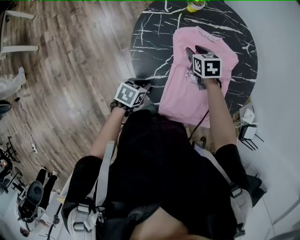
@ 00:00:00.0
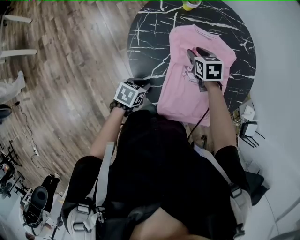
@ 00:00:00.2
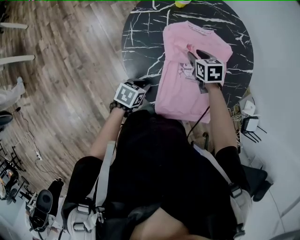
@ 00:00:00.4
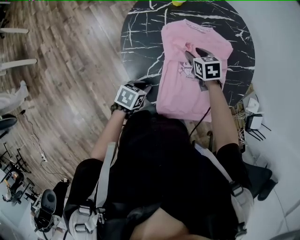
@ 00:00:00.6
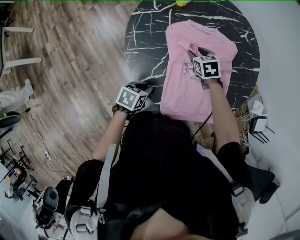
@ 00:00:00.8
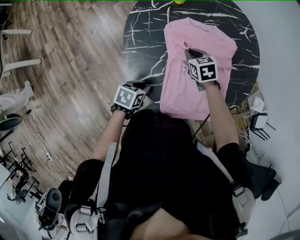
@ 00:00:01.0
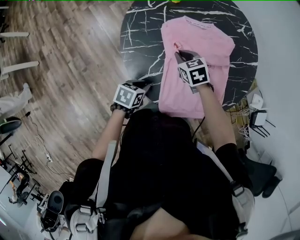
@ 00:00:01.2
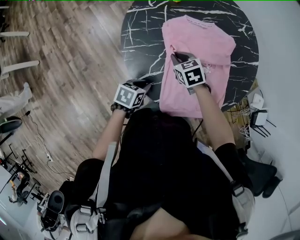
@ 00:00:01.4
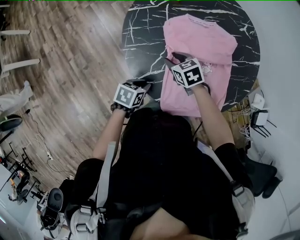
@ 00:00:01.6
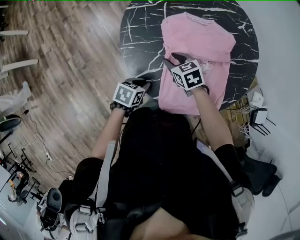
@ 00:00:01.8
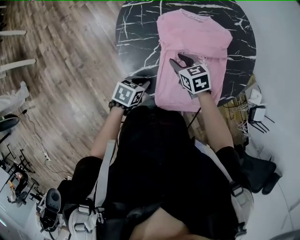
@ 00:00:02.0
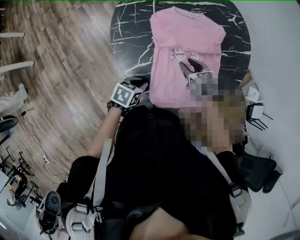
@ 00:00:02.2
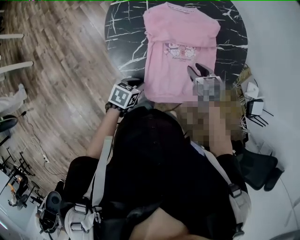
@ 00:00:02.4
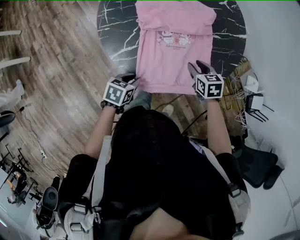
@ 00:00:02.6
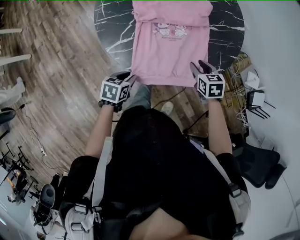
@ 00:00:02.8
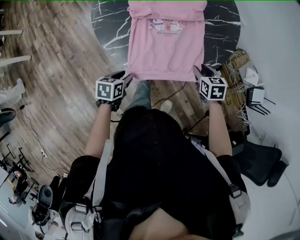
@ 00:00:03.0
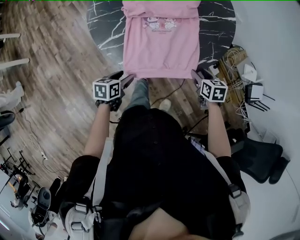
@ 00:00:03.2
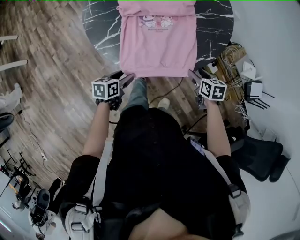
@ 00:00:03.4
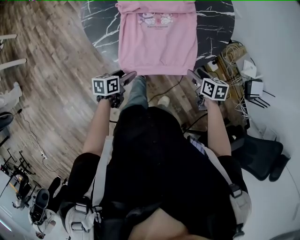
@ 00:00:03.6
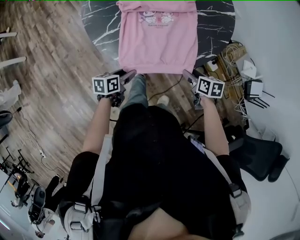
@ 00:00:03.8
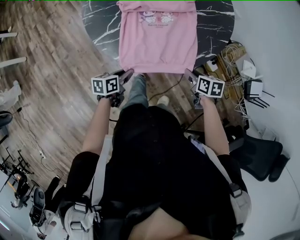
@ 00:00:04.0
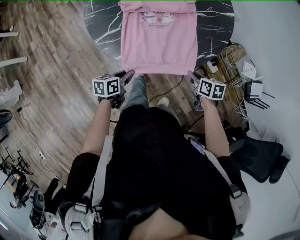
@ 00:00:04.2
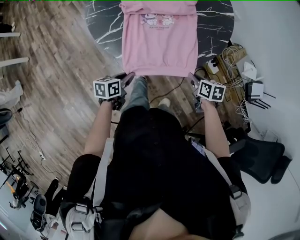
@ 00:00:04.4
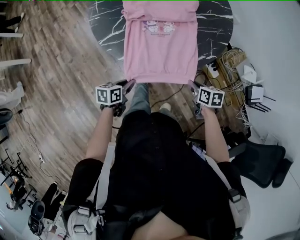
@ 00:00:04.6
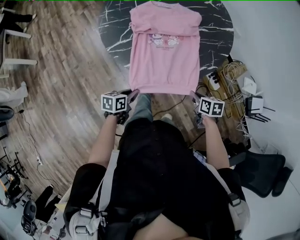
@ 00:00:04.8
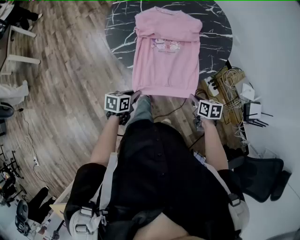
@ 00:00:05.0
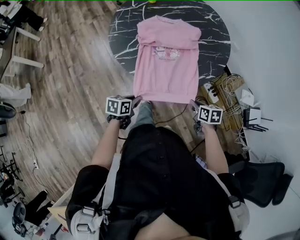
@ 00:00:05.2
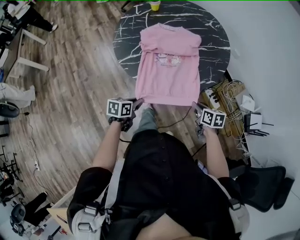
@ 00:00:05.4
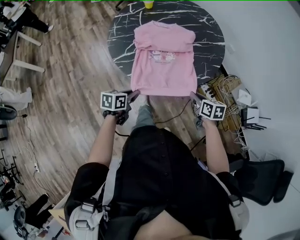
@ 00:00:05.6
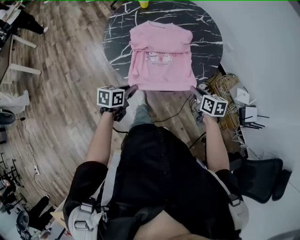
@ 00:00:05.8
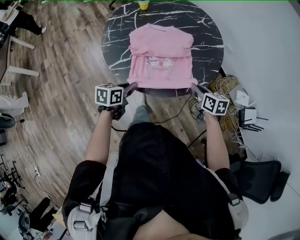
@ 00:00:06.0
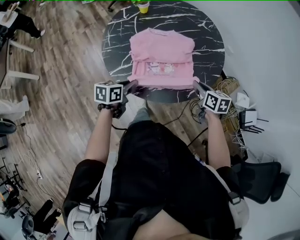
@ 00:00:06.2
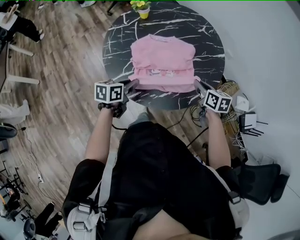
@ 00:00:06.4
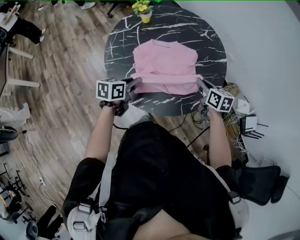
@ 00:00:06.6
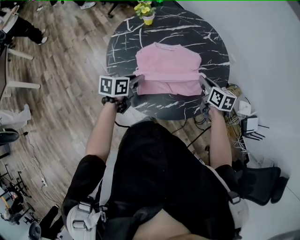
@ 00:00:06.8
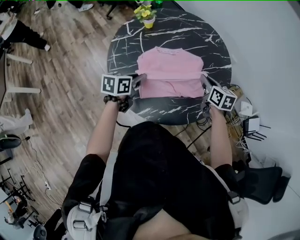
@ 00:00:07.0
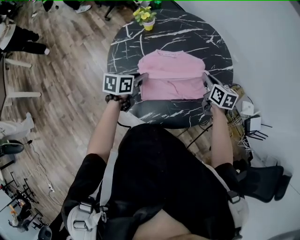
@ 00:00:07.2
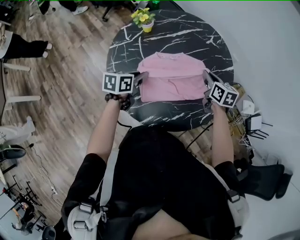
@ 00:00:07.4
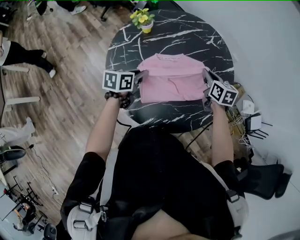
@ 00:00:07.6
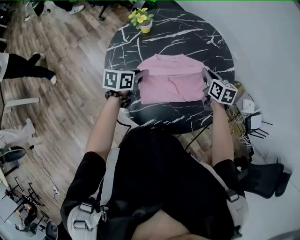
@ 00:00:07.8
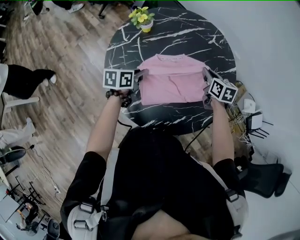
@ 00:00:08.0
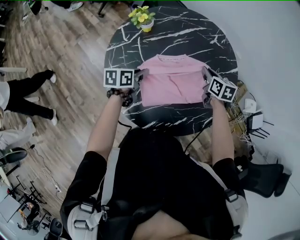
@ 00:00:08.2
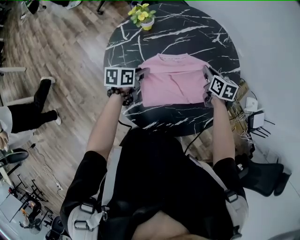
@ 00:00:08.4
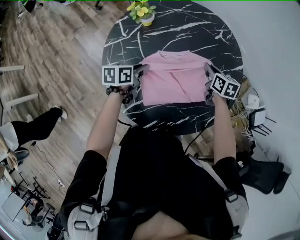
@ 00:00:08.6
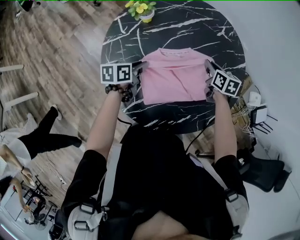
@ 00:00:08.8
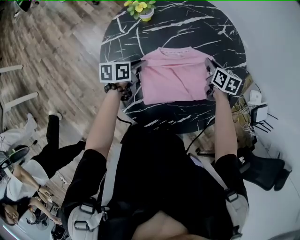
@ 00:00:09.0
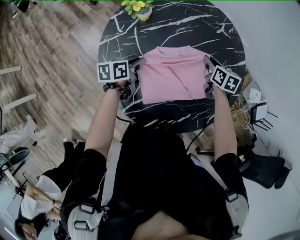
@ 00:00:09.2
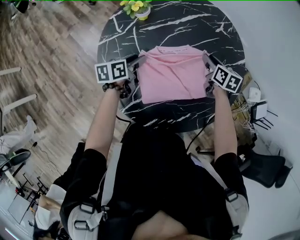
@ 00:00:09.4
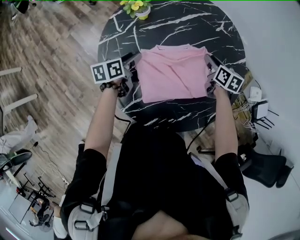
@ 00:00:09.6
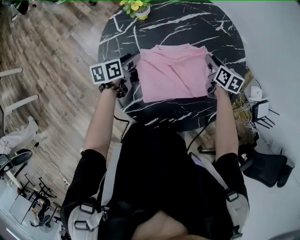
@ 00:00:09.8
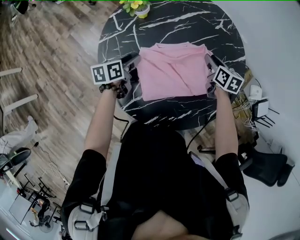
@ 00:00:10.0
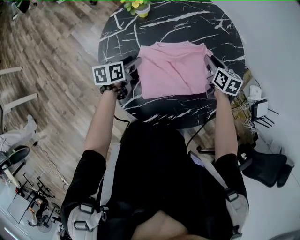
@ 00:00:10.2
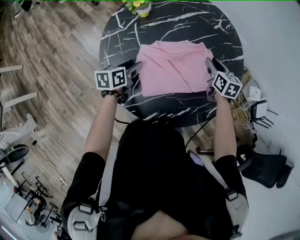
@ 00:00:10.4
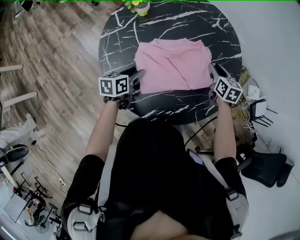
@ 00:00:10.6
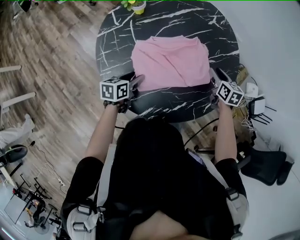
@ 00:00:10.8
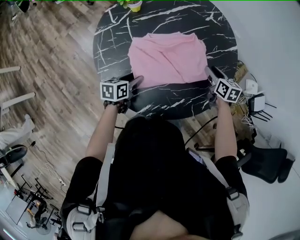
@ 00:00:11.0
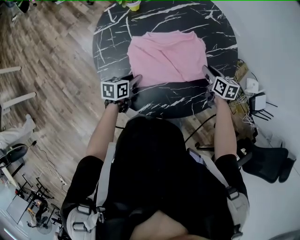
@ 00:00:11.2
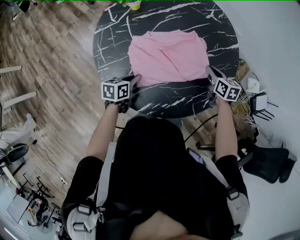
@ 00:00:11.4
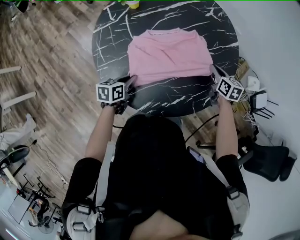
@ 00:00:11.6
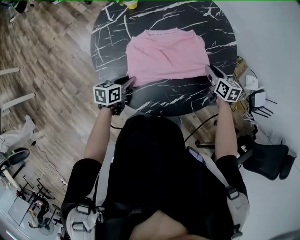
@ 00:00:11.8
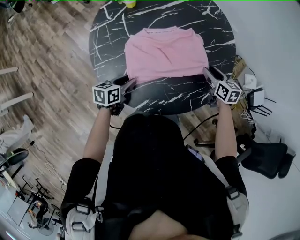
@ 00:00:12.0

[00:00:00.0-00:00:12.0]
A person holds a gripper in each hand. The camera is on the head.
00:00:00.0 to 00:00:01.6: The right gripper shifts approximately 10 cm backward.
00:00:01.6 to 00:00:03.0: The left gripper is displaced backward and to the right by about 15 cm. The right gripper goes roughly 35 cm to the right, and changes its angle by some 20 degrees.
00:00:03.0 to 00:00:04.4: The right gripper goes roughly 10 cm backward, and changes its angle by about 20 degrees. The left gripper is displaced to the right by roughly 5 cm.
00:00:04.4 to 00:00:06.0: Both grippers travel together upward and forward, some 15 cm.
00:00:06.0 to 00:00:07.6: The left gripper shifts some 25 cm forward. Meanwhile the right gripper shifts some 25 cm forward and to the left.
00:00:07.6 to 00:00:09.0: Both grippers move downward and forward, some 10 cm.
00:00:09.0 to 00:00:10.4: The left gripper opens. The right gripper moves roughly 5 cm.
00:00:10.4 to 00:00:12.0: The grippers both shift backward and to the right by about 15 cm.

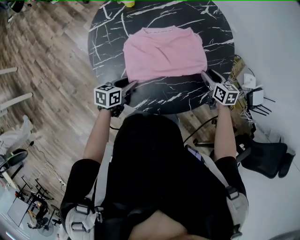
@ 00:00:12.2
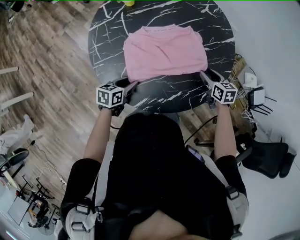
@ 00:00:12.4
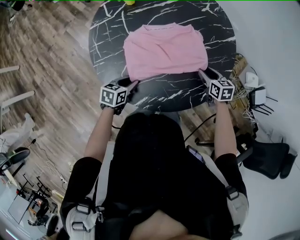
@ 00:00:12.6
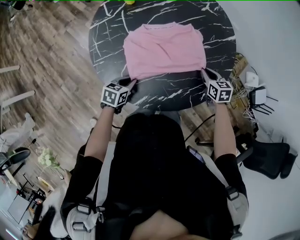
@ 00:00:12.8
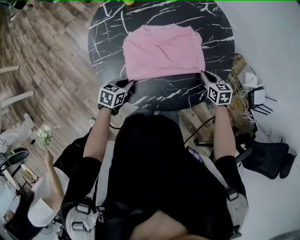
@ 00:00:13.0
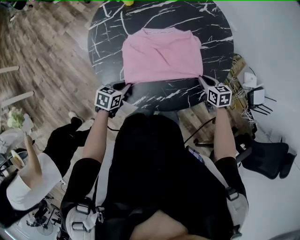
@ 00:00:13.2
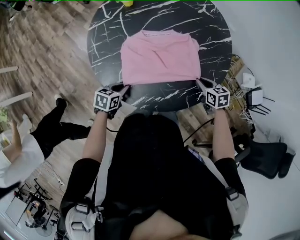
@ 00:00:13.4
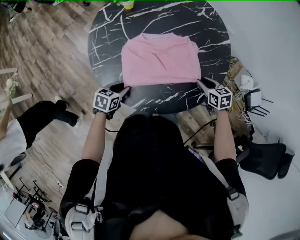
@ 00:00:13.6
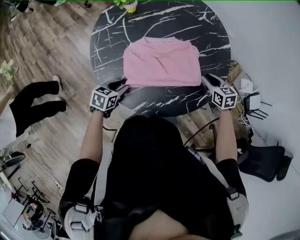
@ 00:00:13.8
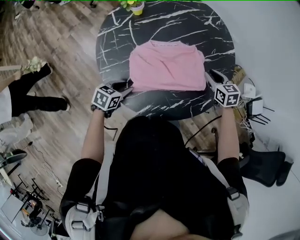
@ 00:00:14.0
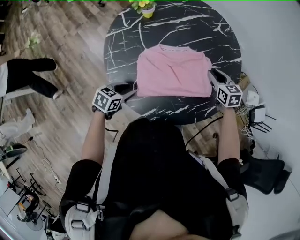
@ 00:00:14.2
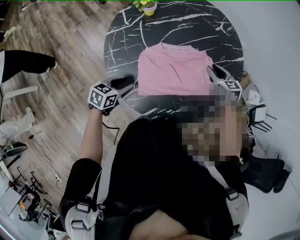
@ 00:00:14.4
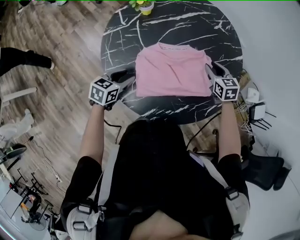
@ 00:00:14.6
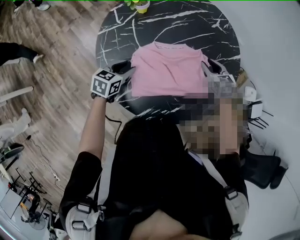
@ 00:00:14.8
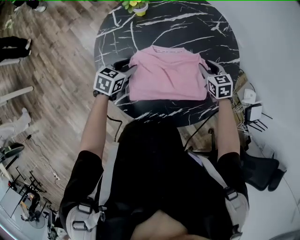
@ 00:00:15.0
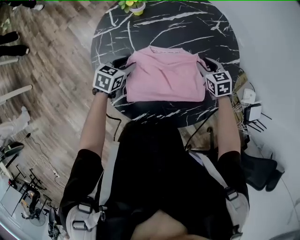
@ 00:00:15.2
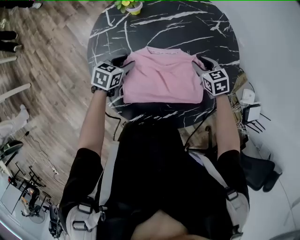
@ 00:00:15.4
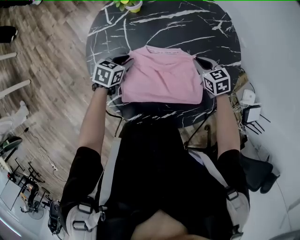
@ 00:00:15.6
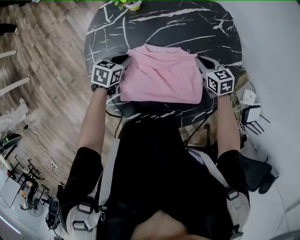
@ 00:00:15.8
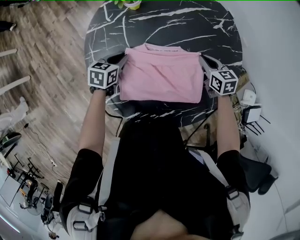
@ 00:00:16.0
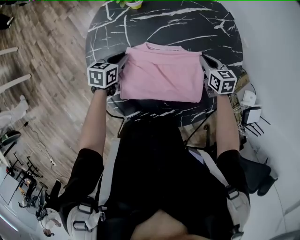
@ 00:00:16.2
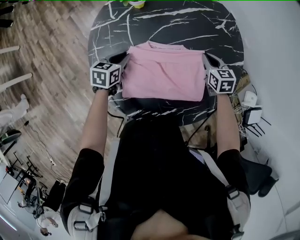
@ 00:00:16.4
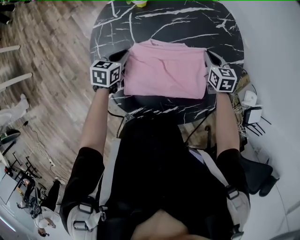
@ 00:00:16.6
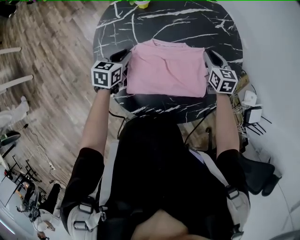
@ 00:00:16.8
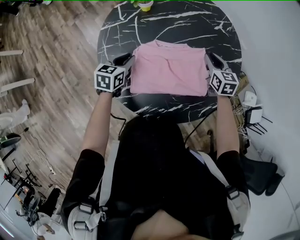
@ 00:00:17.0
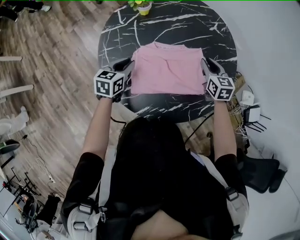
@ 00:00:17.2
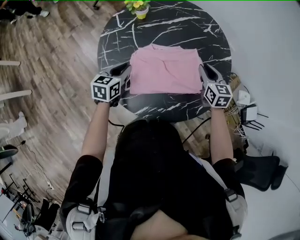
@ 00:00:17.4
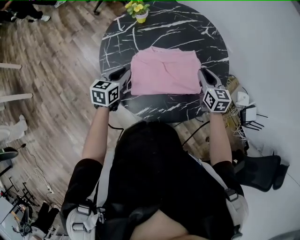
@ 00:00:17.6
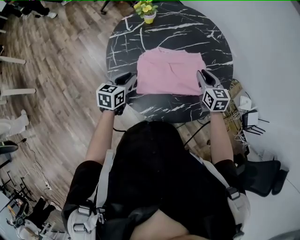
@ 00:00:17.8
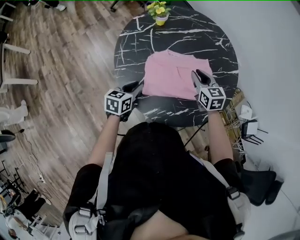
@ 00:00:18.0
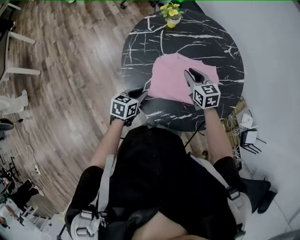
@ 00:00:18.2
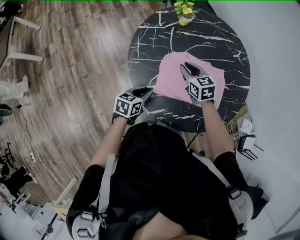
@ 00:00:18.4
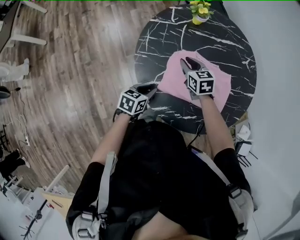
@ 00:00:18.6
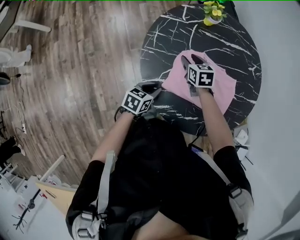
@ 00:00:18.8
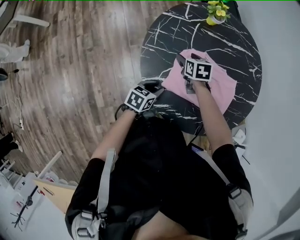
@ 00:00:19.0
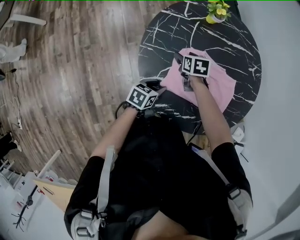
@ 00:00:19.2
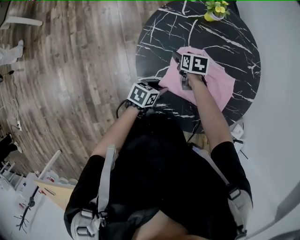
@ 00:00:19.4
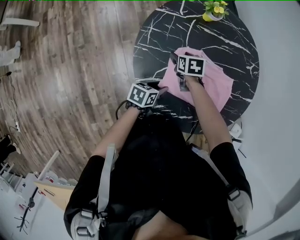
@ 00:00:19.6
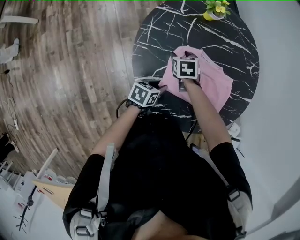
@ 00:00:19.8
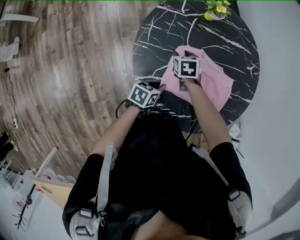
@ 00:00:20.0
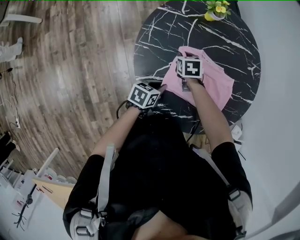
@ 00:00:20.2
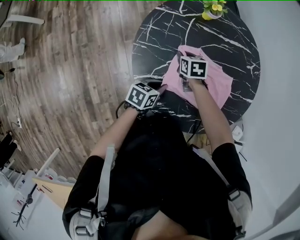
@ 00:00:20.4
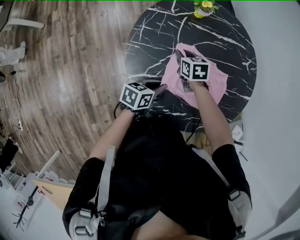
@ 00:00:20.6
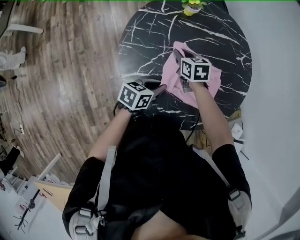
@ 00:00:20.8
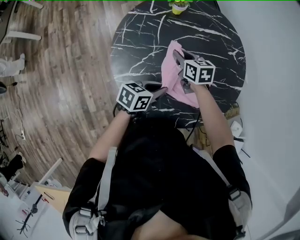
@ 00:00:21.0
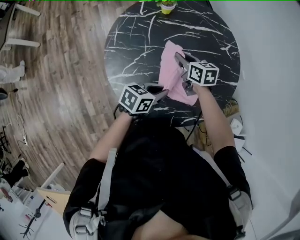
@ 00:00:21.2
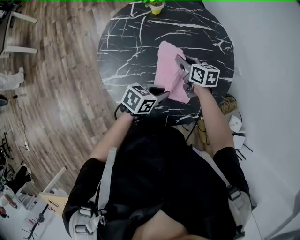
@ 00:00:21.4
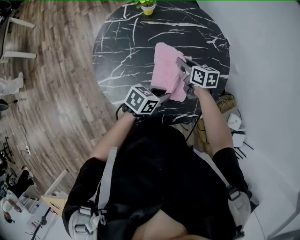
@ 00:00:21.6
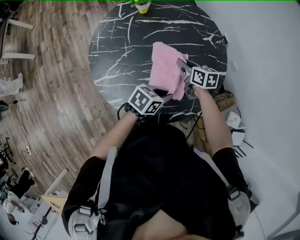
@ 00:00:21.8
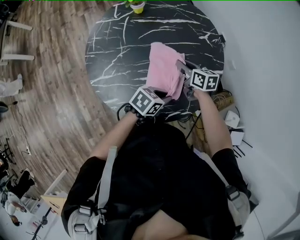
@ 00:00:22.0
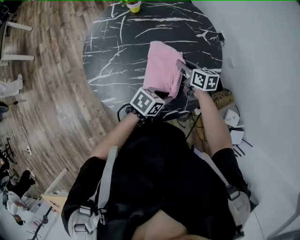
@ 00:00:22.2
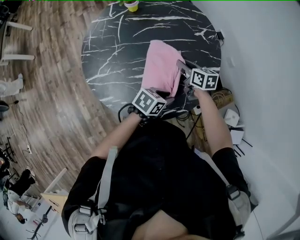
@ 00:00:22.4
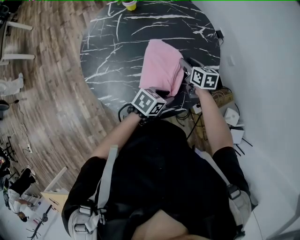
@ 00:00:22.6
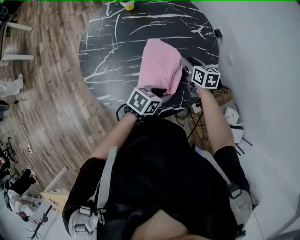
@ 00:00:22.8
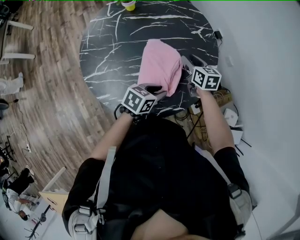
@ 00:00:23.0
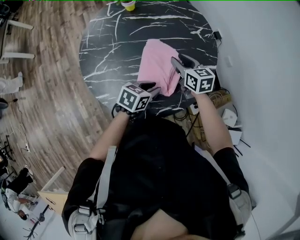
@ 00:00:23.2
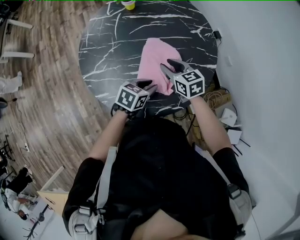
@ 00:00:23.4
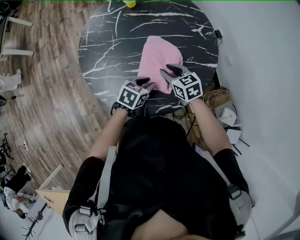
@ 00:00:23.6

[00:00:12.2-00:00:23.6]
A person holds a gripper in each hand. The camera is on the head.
00:00:13.6 to 00:00:15.0: The right gripper shifts some 20 cm forward and to the left. The left gripper goes some 15 cm forward.
00:00:15.0 to 00:00:16.4: The right gripper moves roughly 5 cm.
00:00:16.4 to 00:00:17.8: Both grippers move backward and upward, about 15 cm.
00:00:17.8 to 00:00:19.4: The left gripper travels downward and backward by roughly 15 cm, and turns by approximately 30 degrees. The right gripper shifts roughly 30 cm to the left and downward, swivels approximately 40 degrees, and opens up.
00:00:19.4 to 00:00:20.8: Both grippers move upward and to the right, about 10 cm. The right gripper closes.
00:00:20.8 to 00:00:22.2: Both grippers move to the right, about 25 cm. The left gripper turns by some 20 degrees, while the right gripper changes its angle by about 20 degrees.
00:00:22.2 to 00:00:23.6: The right gripper heads backward, covering roughly 10 cm, and changes its angle by some 30 degrees. The left gripper is displaced to the left by some 5 cm.
